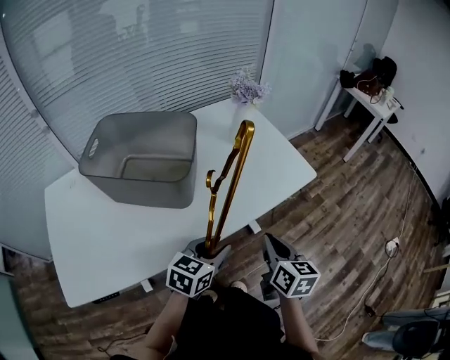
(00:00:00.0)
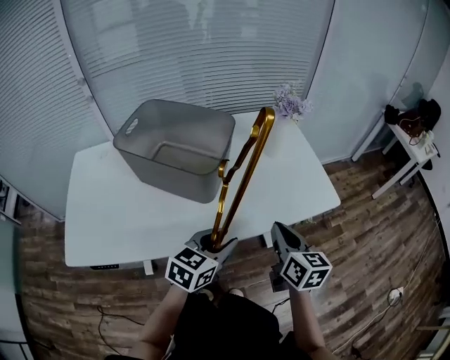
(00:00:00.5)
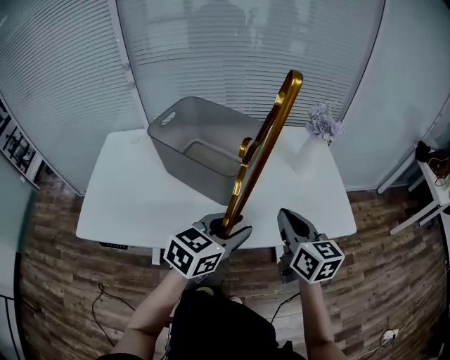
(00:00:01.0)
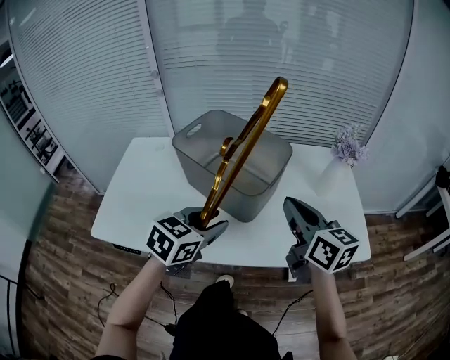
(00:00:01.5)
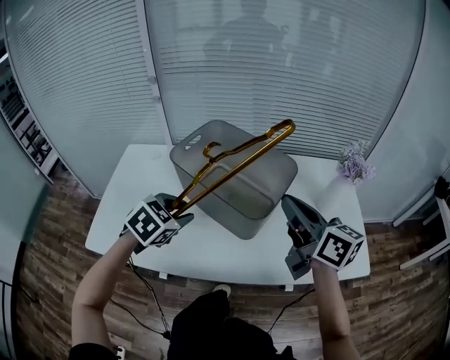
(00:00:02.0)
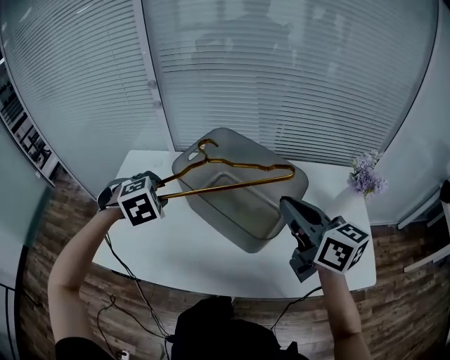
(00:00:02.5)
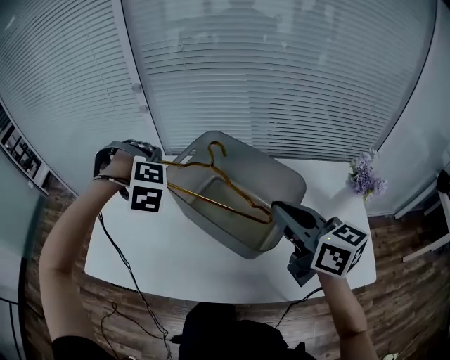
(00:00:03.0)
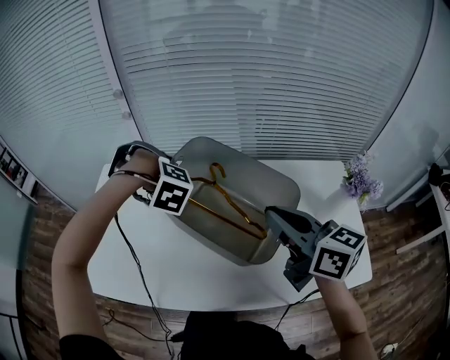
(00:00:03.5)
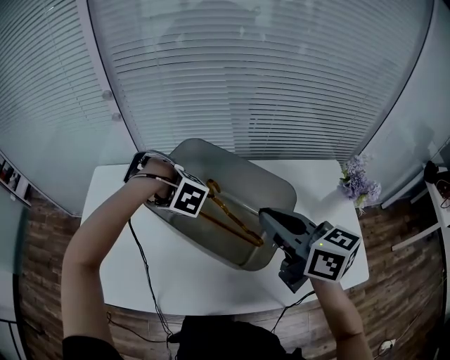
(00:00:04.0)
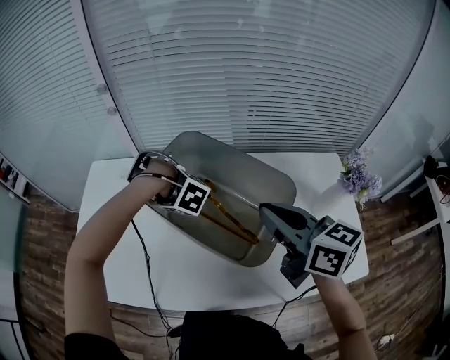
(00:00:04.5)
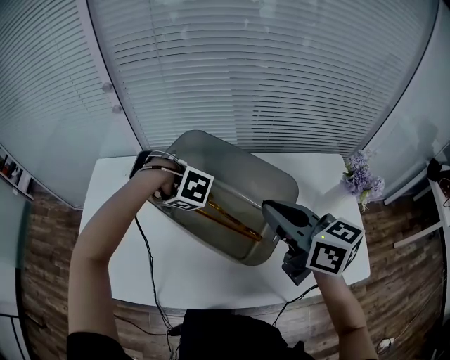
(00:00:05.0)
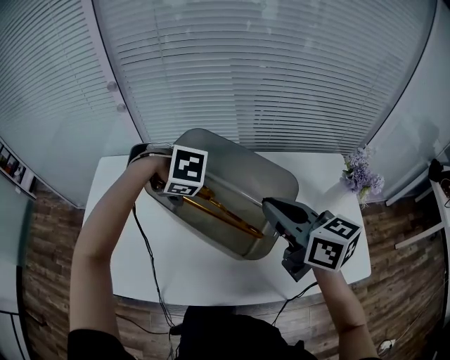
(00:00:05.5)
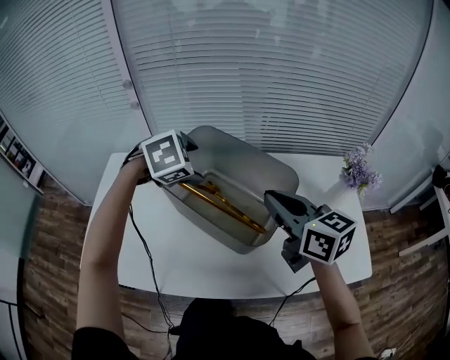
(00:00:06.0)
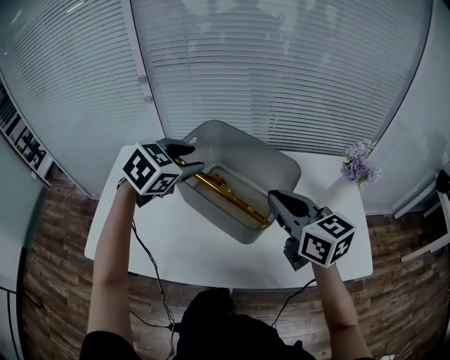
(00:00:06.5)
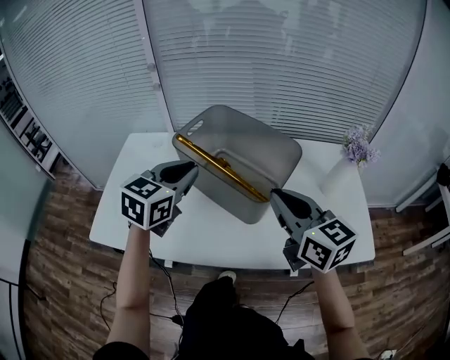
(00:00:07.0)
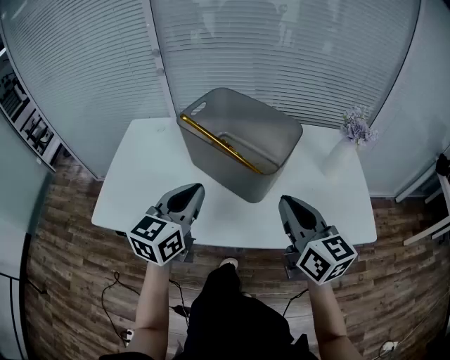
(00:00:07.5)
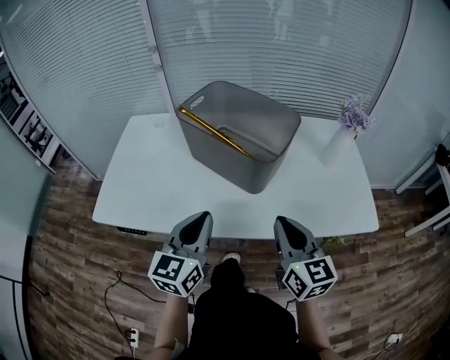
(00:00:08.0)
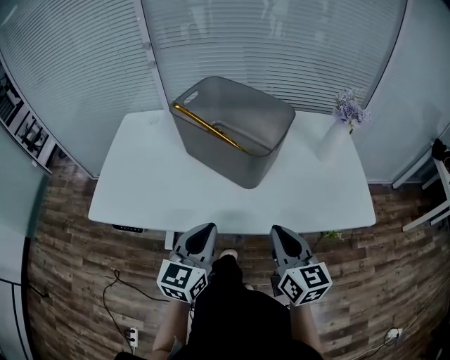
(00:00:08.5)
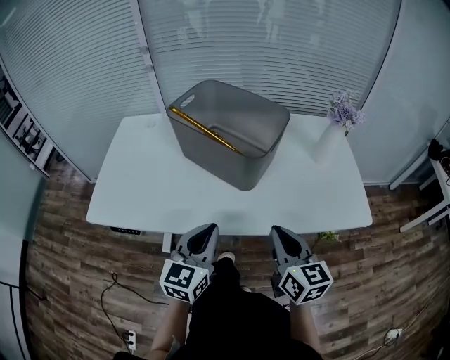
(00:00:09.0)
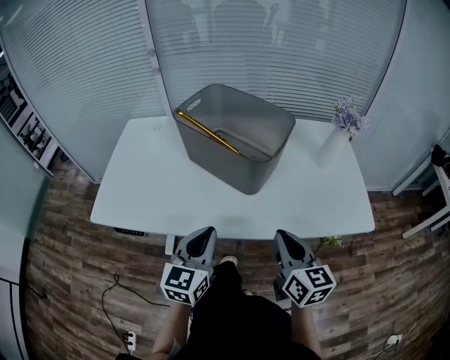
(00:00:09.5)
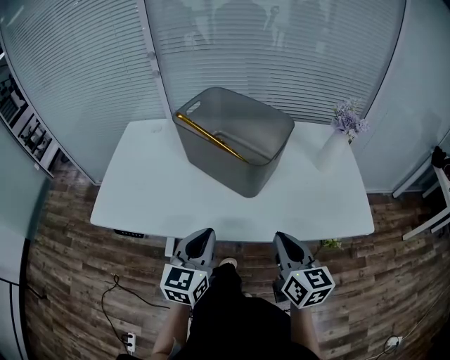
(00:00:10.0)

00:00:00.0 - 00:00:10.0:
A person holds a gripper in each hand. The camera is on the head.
00:00:00.0 - 00:00:02.0: The right gripper changes place by some 35 cm, and changes its angle by about 50 degrees, while the left gripper moves approximately 30 cm, and swivels approximately 40 degrees.
00:00:02.0 - 00:00:04.0: The right gripper changes place by approximately 10 cm; the left gripper changes place by roughly 20 cm, and changes its angle by roughly 80 degrees.
00:00:04.0 - 00:00:06.0: The left gripper moves upward, about 10 cm, turns by some 60 degrees, and opens up.
00:00:06.0 - 00:00:08.0: The two grippers go about 30 cm backward. The left gripper points its fingers about 60 degrees further upward, and closes.
00:00:08.0 - 00:00:10.0: The left gripper ends up approximately 5 cm from where it was.

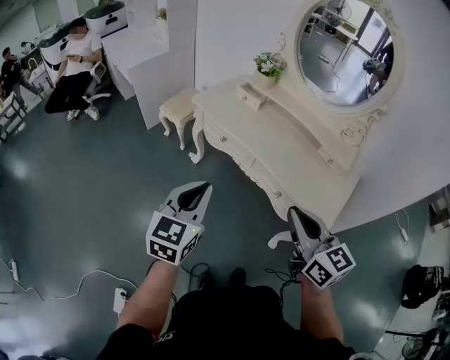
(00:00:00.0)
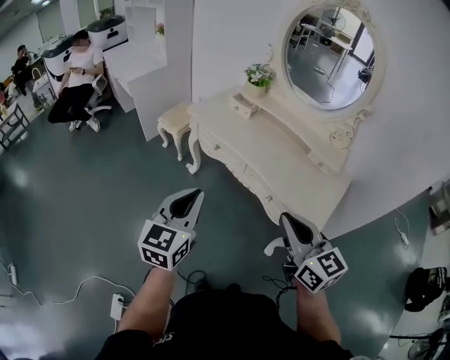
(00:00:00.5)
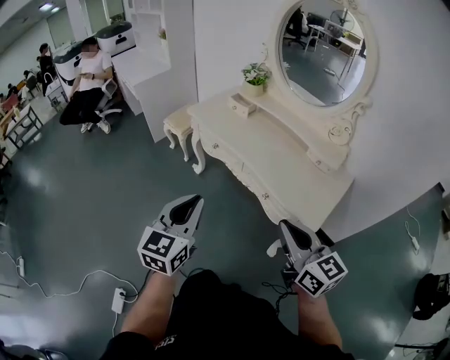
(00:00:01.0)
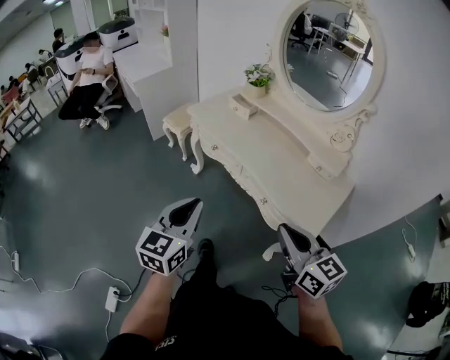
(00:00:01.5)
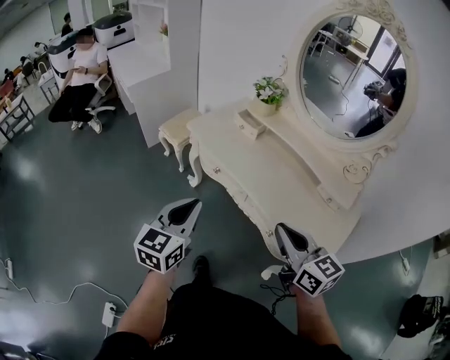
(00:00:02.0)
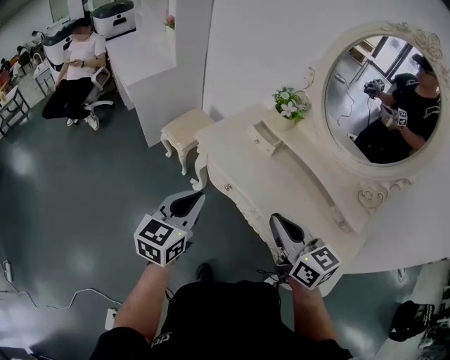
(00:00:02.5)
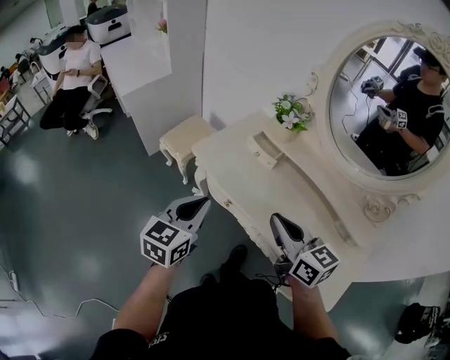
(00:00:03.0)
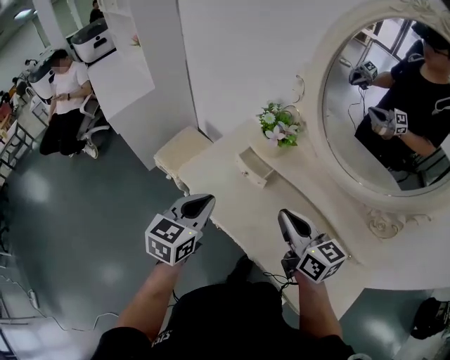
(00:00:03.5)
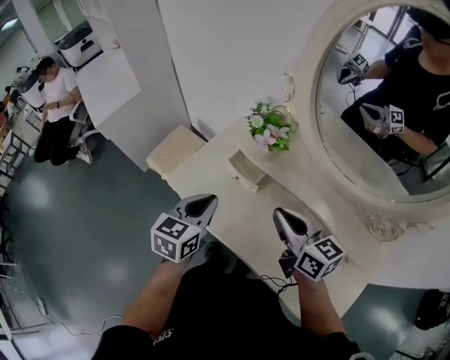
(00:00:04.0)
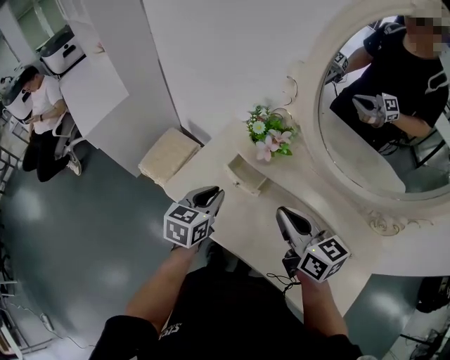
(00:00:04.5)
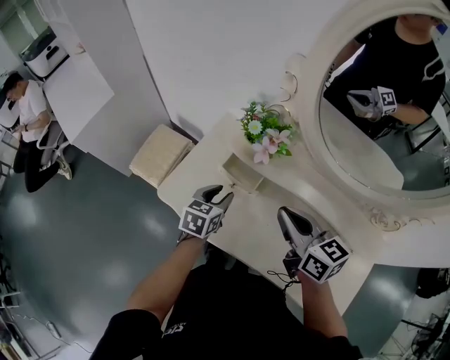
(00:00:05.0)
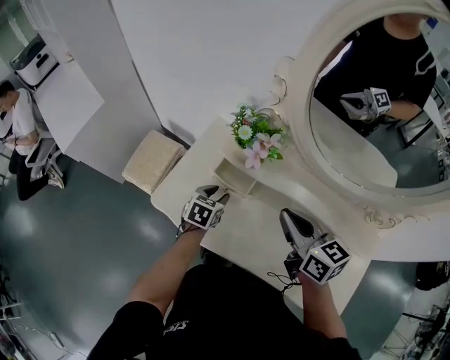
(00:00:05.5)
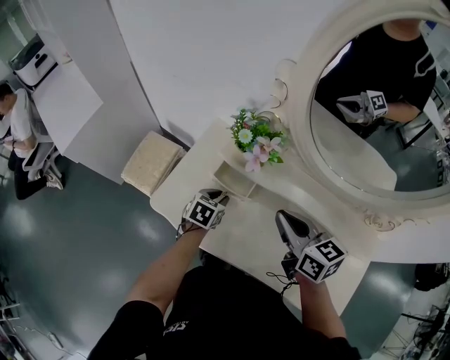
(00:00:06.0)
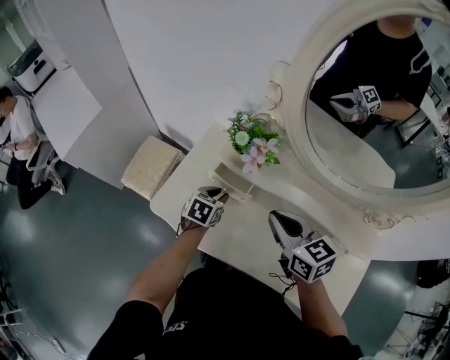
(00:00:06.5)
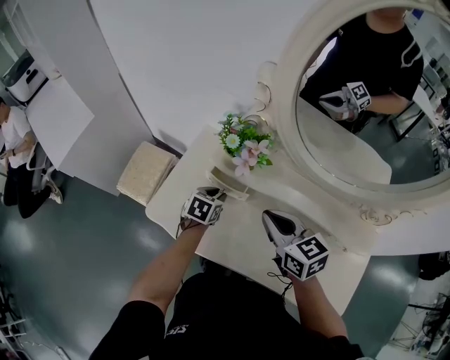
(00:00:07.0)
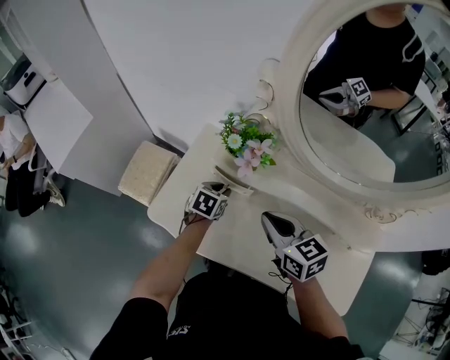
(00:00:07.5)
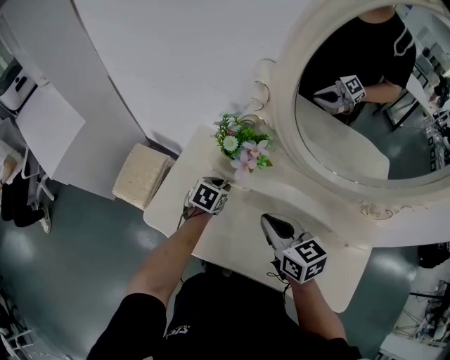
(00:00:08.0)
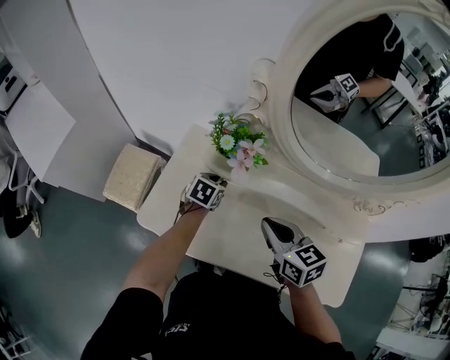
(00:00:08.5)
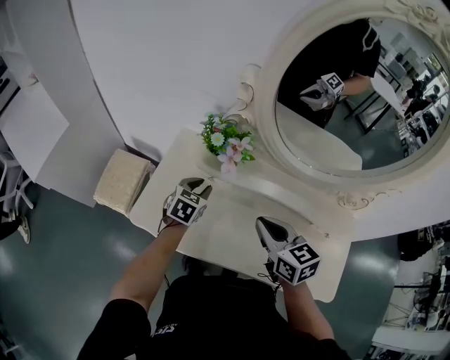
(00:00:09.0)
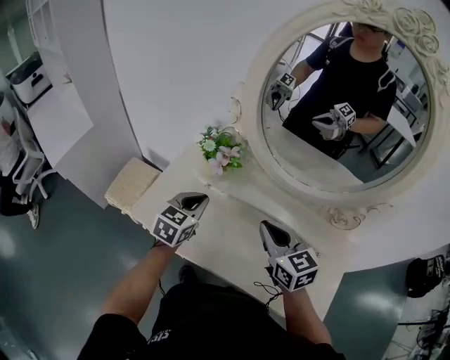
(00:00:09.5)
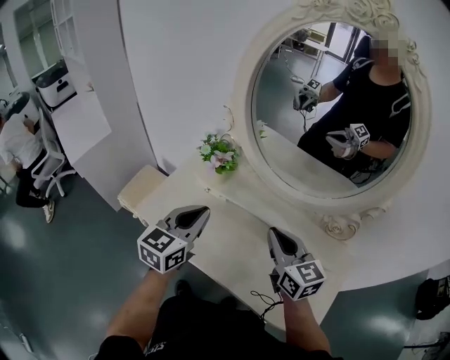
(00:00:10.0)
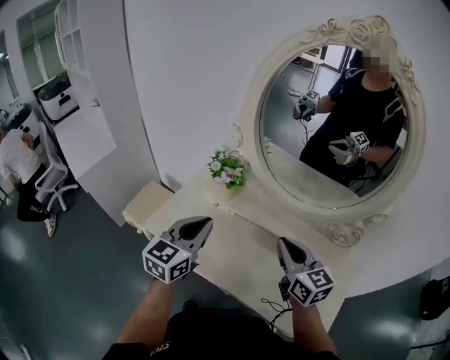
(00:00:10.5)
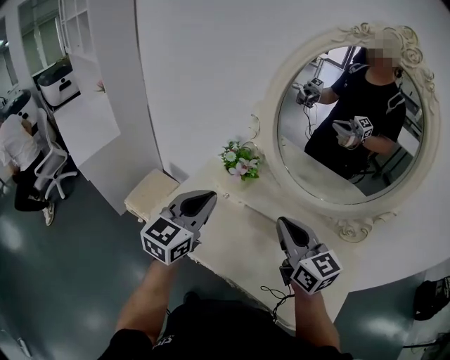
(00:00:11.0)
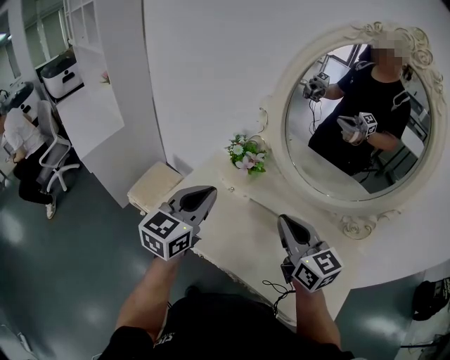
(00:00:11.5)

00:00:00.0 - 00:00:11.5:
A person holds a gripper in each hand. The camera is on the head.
00:00:00.0 - 00:00:02.0: Both grippers travel together forward, approximately 10 cm.
00:00:02.0 - 00:00:04.0: Both grippers travel together forward, approximately 40 cm.
00:00:04.0 - 00:00:06.0: The right gripper is displaced forward by some 5 cm, while the left gripper travels downward and forward by approximately 25 cm, swivels about 30 degrees, and opens.
00:00:06.0 - 00:00:07.5: The left gripper moves roughly 5 cm.
00:00:07.5 - 00:00:09.5: The left gripper goes some 20 cm upward and backward, changes its angle by approximately 30 degrees, and closes its fingers. The right gripper heads to the right, upward and backward, covering some 15 cm.
00:00:09.5 - 00:00:11.5: The left gripper is displaced upward and backward by approximately 20 cm, and changes its angle by approximately 20 degrees. Meanwhile the right gripper goes roughly 10 cm upward, and travels to the right and back again, approximately 5 cm each way.

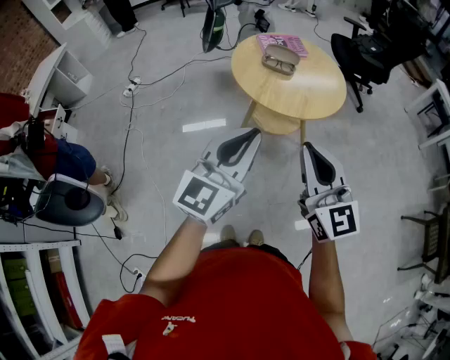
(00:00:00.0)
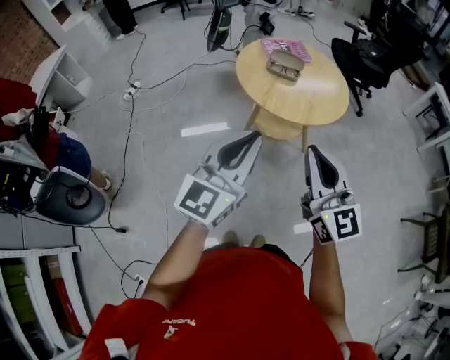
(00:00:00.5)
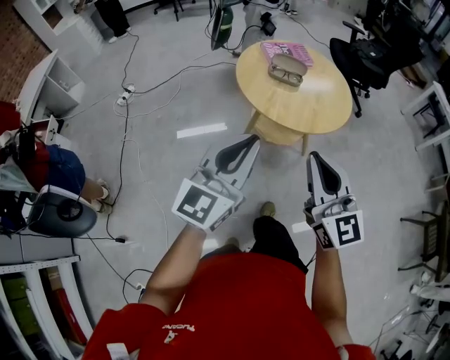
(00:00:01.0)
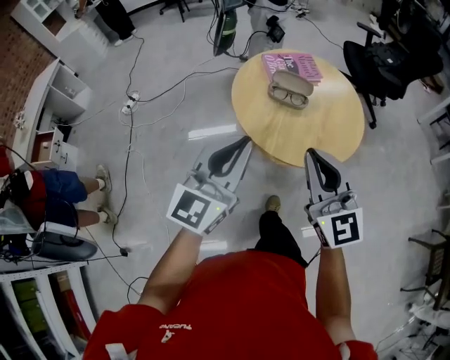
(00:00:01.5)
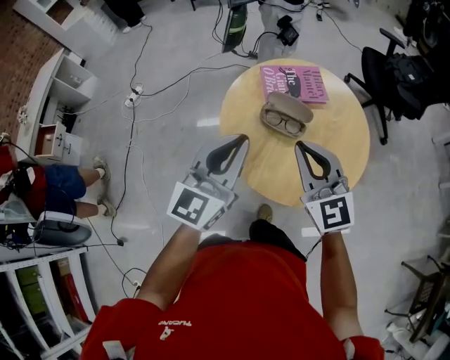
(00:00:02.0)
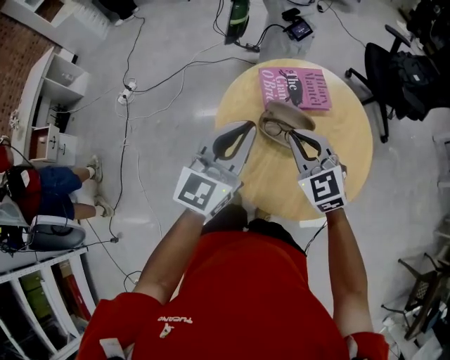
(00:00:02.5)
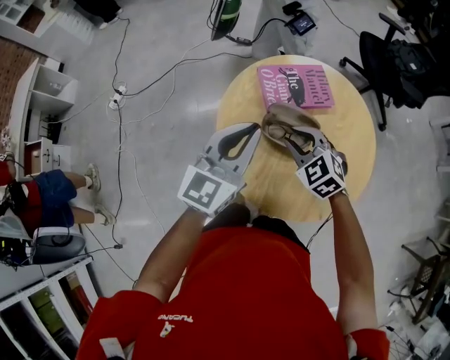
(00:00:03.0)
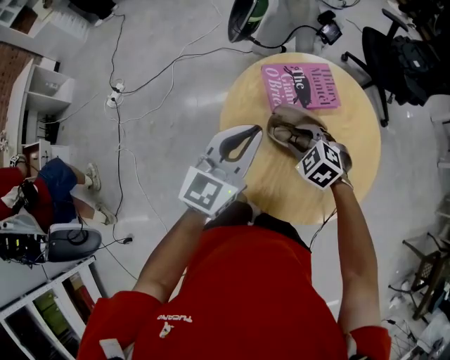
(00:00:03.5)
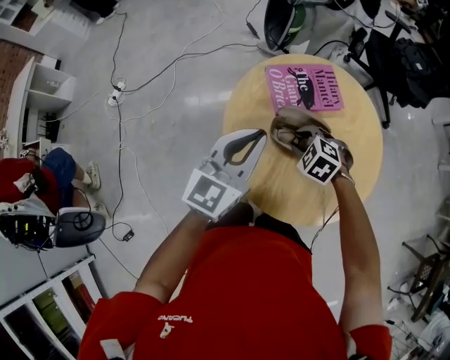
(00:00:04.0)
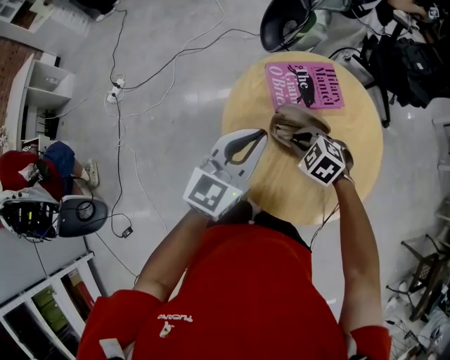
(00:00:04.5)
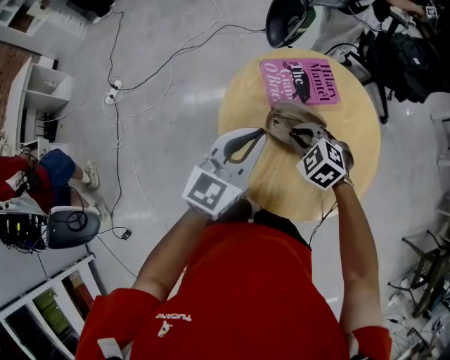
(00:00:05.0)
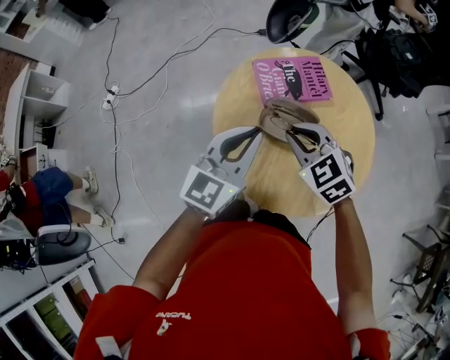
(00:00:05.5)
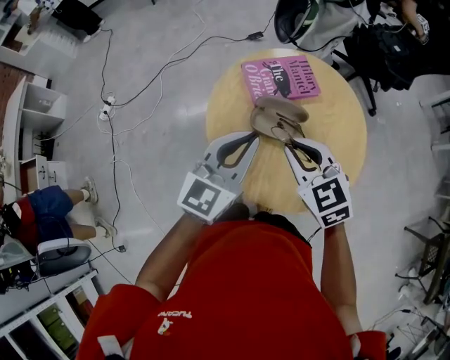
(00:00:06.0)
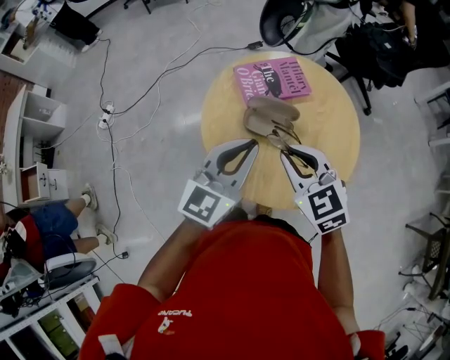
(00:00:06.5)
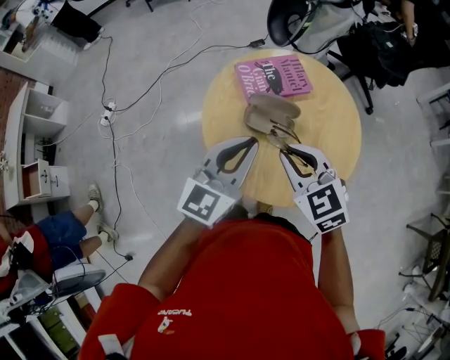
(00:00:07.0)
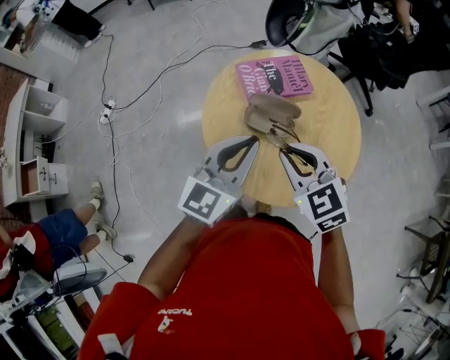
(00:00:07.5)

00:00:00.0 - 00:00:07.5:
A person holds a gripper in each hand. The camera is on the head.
00:00:00.0 - 00:00:02.0: Both grippers move forward, some 40 cm.
00:00:02.0 - 00:00:04.0: The right gripper travels downward and forward by some 30 cm, angles its fingers downward, by roughly 60 degrees, and opens; the left gripper is displaced forward and downward by approximately 15 cm.
00:00:04.0 - 00:00:05.5: The right gripper travels upward by about 15 cm, and changes its angle by roughly 30 degrees.
00:00:05.5 - 00:00:07.5: The right gripper goes roughly 10 cm backward and upward. The left gripper travels backward by approximately 5 cm.
